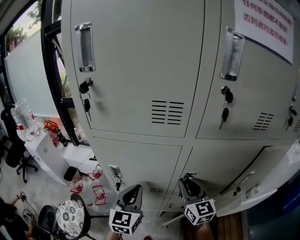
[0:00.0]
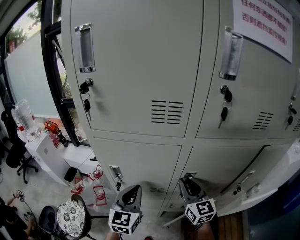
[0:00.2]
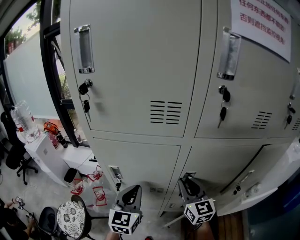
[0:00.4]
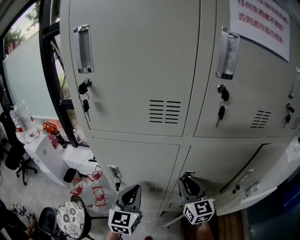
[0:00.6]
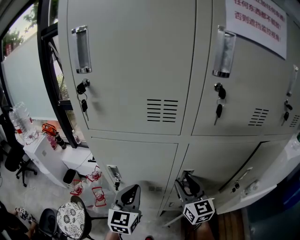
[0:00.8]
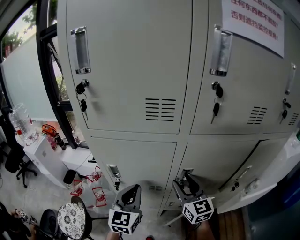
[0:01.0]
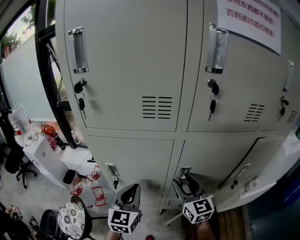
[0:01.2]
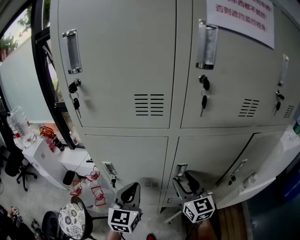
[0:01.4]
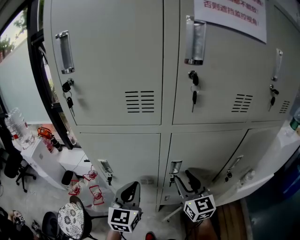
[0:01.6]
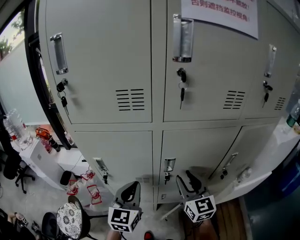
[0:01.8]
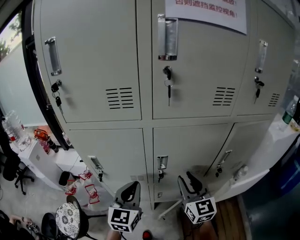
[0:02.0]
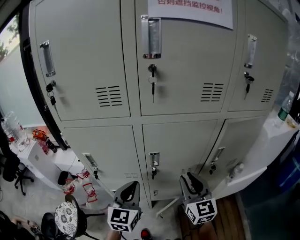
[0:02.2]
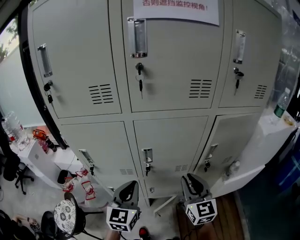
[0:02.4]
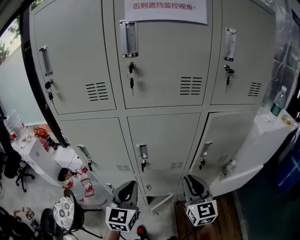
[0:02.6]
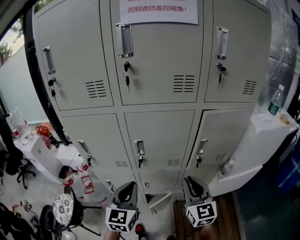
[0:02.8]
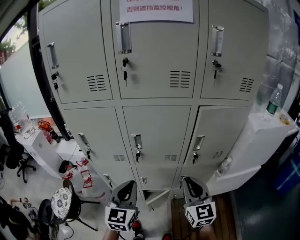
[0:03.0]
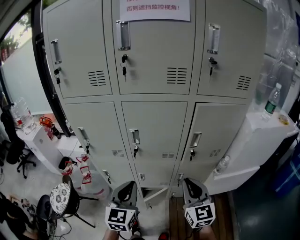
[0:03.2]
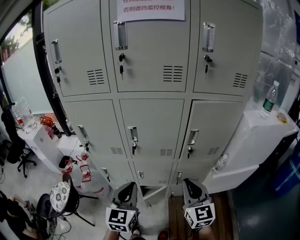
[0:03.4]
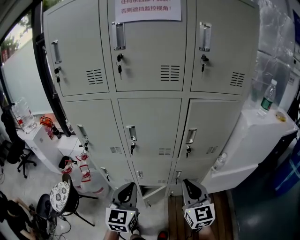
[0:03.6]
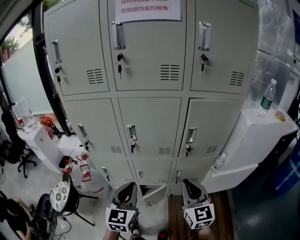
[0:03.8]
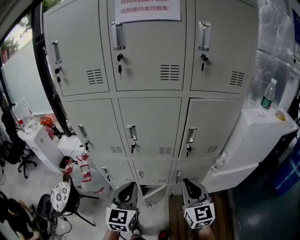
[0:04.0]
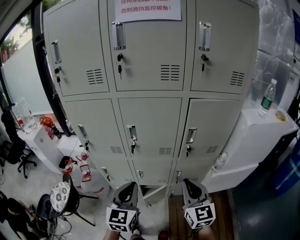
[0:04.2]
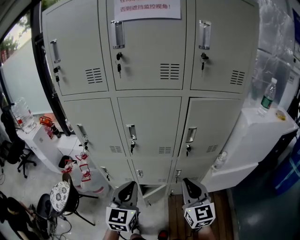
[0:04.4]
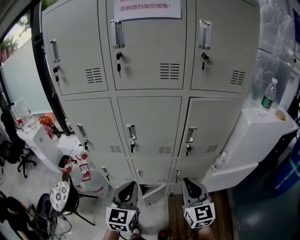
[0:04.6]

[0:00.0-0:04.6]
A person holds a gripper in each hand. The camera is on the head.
0:00.0 to 0:01.6: The right gripper shifts by some 5 cm, and opens.
0:01.6 to 0:03.0: Both grippers travel together to the right and backward, roughly 20 cm. The right gripper closes its fingers.
0:03.0 to 0:04.6: The right gripper moves approximately 5 cm. The left gripper ends up roughly 5 cm from where it was.

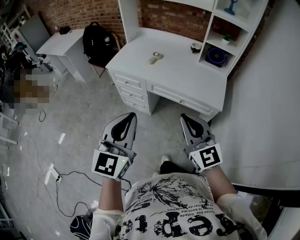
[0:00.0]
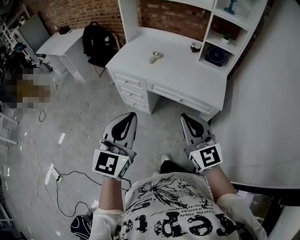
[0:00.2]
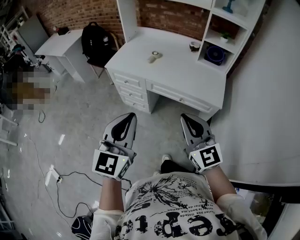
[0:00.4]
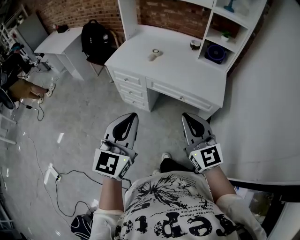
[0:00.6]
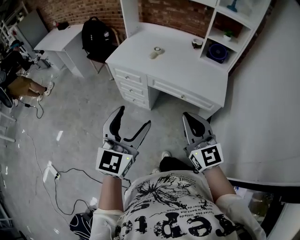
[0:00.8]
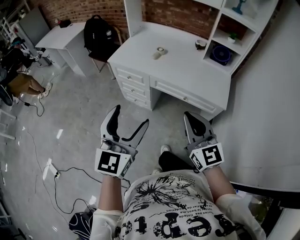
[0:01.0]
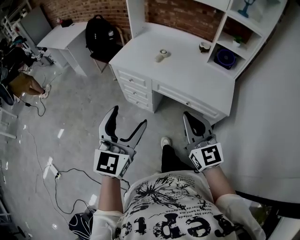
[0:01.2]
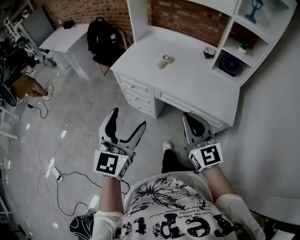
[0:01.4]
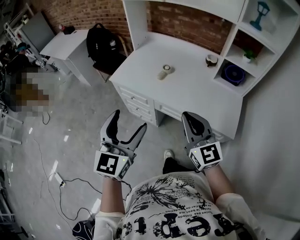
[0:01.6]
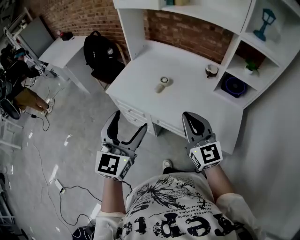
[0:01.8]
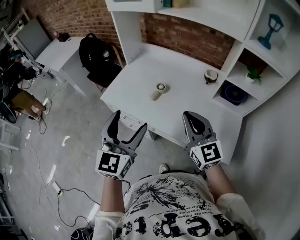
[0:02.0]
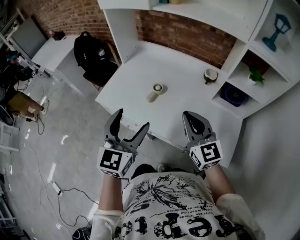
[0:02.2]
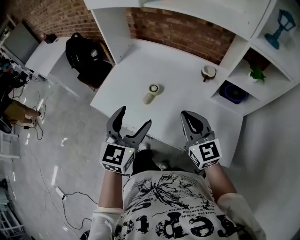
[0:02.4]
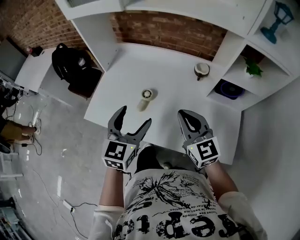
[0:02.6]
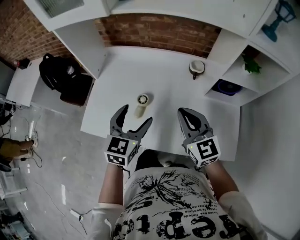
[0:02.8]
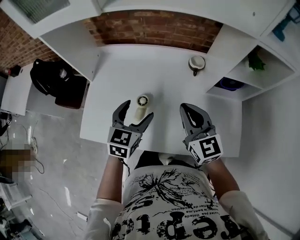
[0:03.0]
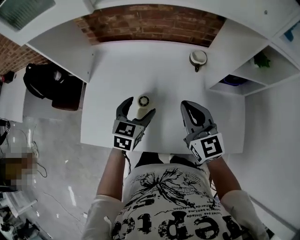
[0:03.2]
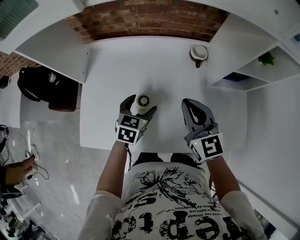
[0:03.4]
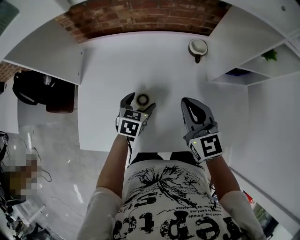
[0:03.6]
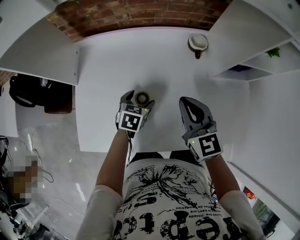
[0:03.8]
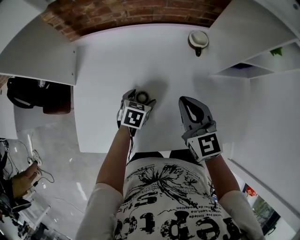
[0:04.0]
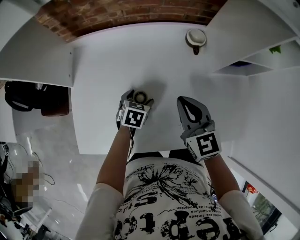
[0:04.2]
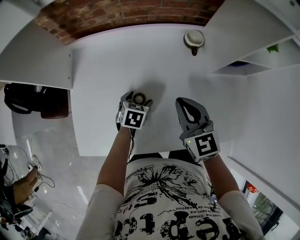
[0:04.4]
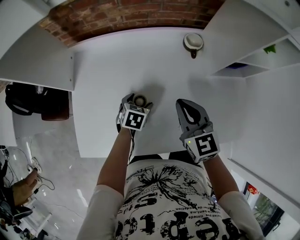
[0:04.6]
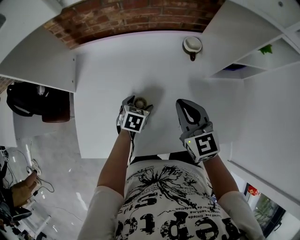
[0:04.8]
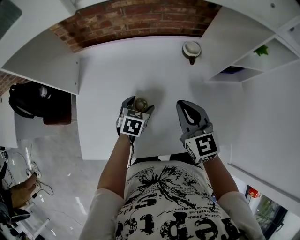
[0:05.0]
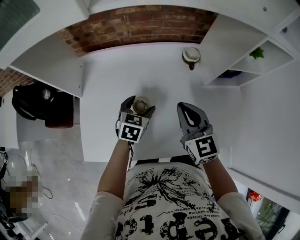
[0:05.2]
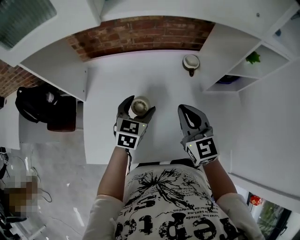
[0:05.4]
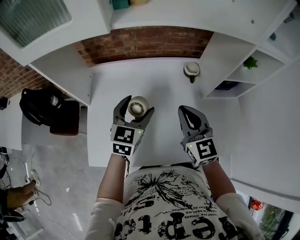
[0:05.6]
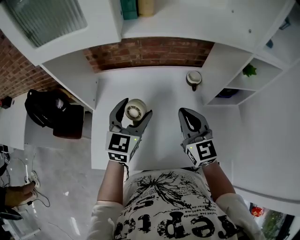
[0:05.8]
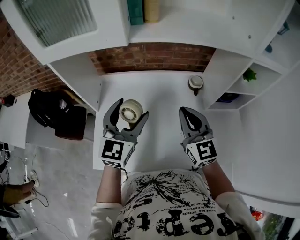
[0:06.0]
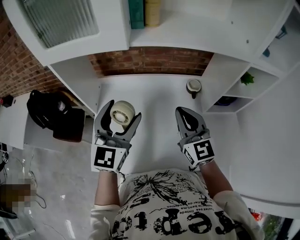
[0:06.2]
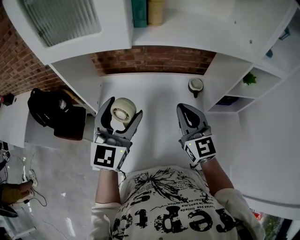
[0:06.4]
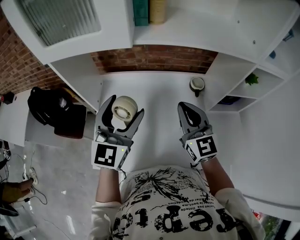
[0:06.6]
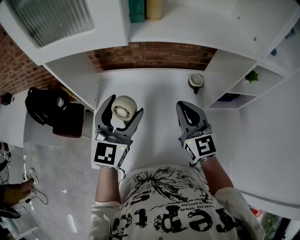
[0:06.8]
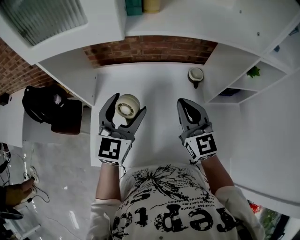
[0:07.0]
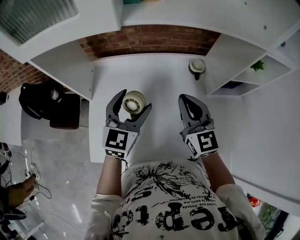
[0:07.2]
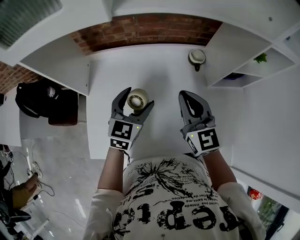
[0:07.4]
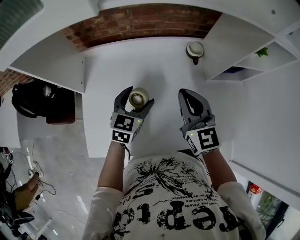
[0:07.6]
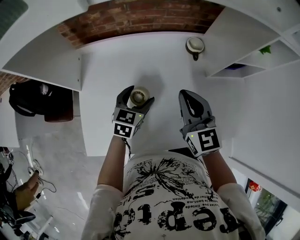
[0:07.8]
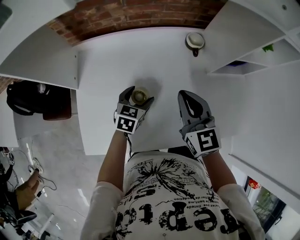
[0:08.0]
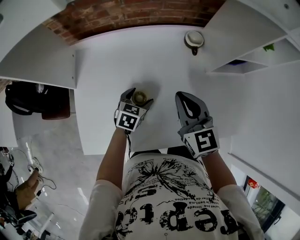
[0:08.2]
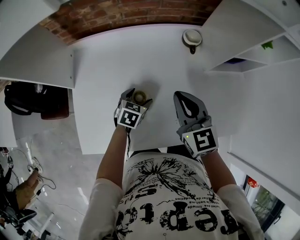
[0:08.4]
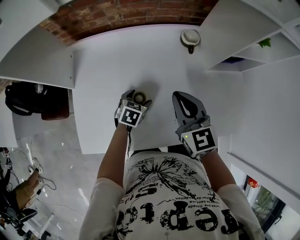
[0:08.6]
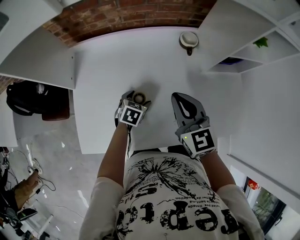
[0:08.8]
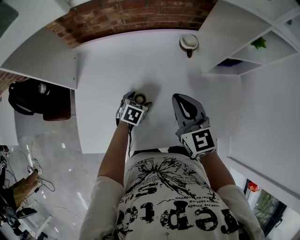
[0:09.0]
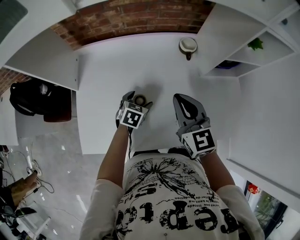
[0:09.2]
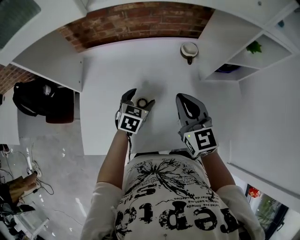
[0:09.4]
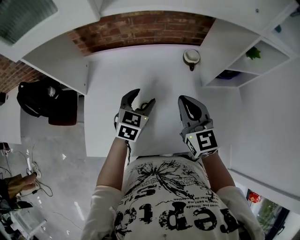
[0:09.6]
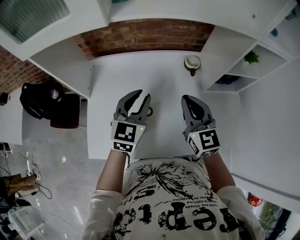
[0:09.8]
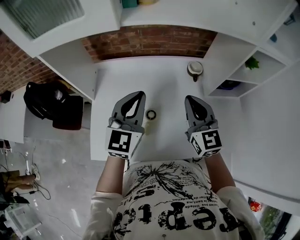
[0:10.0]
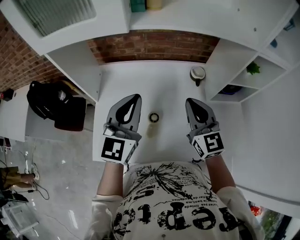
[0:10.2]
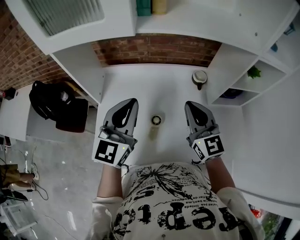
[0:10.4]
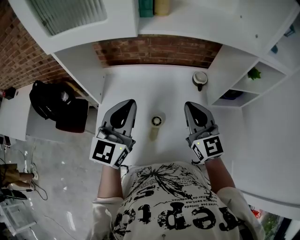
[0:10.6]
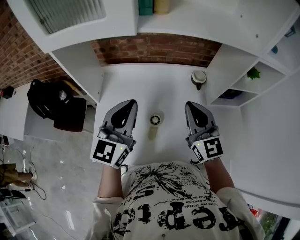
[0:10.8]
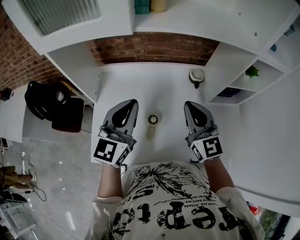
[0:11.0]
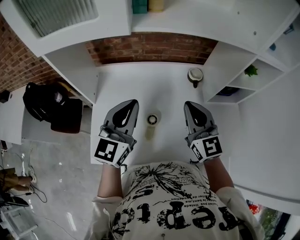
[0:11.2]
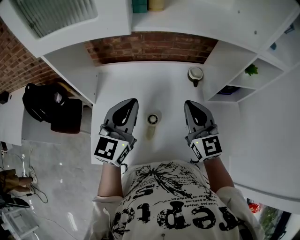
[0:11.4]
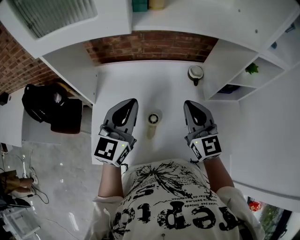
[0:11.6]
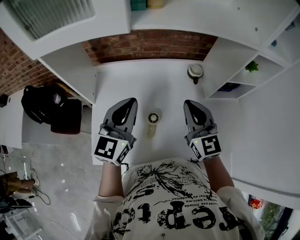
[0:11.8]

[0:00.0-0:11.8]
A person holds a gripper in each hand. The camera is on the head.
0:00.0 to 0:01.4: The grippers both shift forward by approximately 15 cm. The left gripper opens its fingers.
0:01.4 to 0:03.0: The pair of grippers is taken forward, some 60 cm. The right gripper rotates some 20 degrees. The left gripper changes its angle by approximately 30 degrees.
0:03.0 to 0:04.4: The left gripper goes roughly 25 cm downward and forward, and swivels roughly 30 degrees. The right gripper shifts roughly 10 cm downward and forward.
0:04.4 to 0:06.0: The right gripper shifts some 15 cm upward. Meanwhile the left gripper is displaced upward by approximately 35 cm, and angles its fingers upward, by roughly 50 degrees.
0:06.0 to 0:07.4: The left gripper moves downward, about 15 cm; the right gripper ends up about 5 cm from where it was.
0:07.4 to 0:08.8: The right gripper shifts approximately 5 cm downward, while the left gripper heads downward, covering some 25 cm, and tips its fingers downward by roughly 30 degrees.
0:08.8 to 0:10.4: The left gripper moves upward, roughly 40 cm, tilts its fingers some 60 degrees upward, and closes up. The right gripper shifts about 10 cm upward.
0:10.4 to 0:11.8: The grippers move only a little.

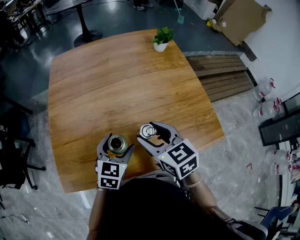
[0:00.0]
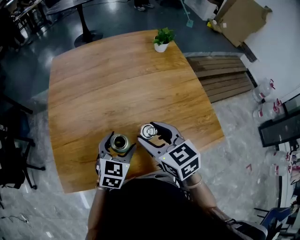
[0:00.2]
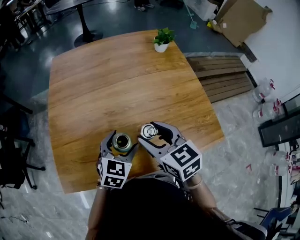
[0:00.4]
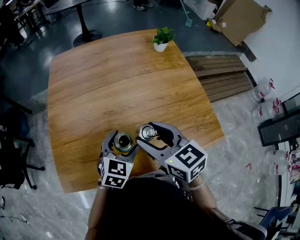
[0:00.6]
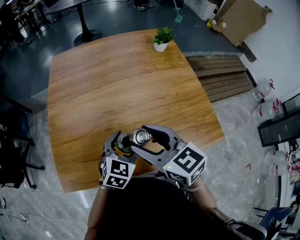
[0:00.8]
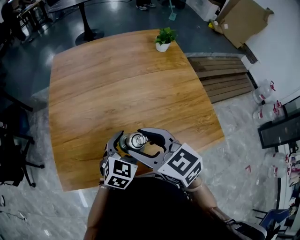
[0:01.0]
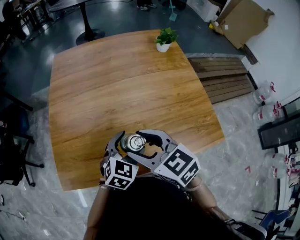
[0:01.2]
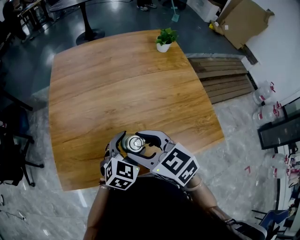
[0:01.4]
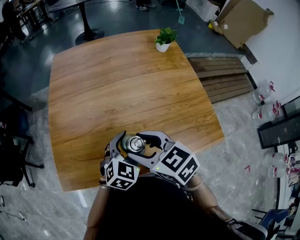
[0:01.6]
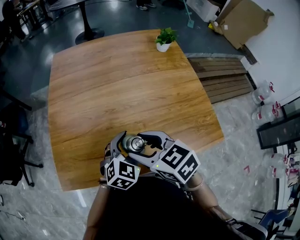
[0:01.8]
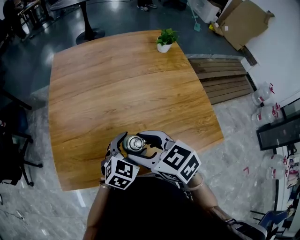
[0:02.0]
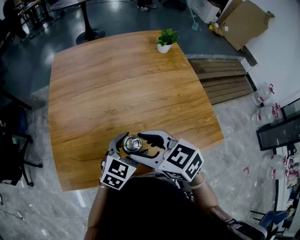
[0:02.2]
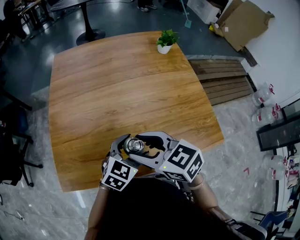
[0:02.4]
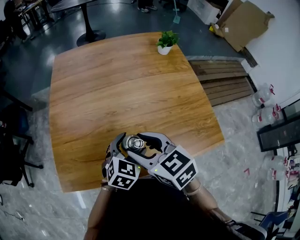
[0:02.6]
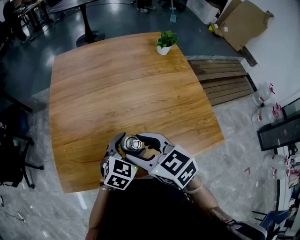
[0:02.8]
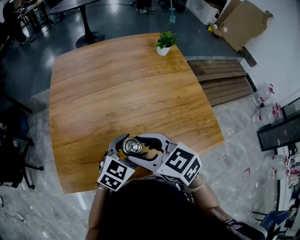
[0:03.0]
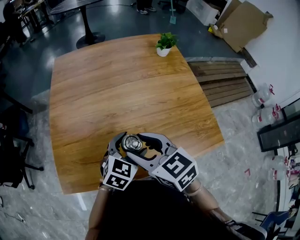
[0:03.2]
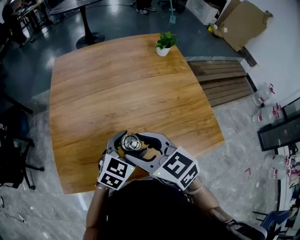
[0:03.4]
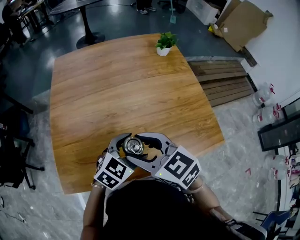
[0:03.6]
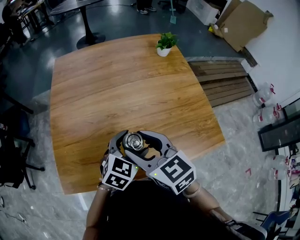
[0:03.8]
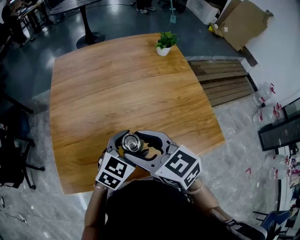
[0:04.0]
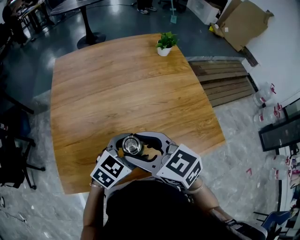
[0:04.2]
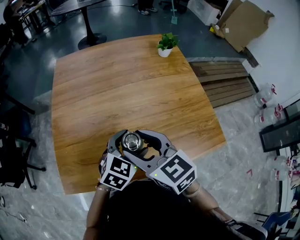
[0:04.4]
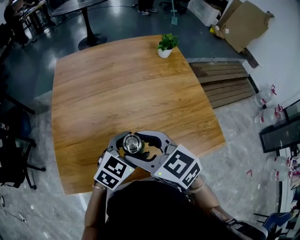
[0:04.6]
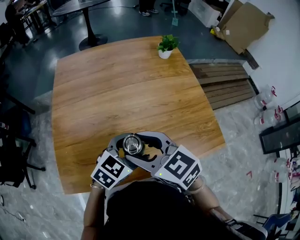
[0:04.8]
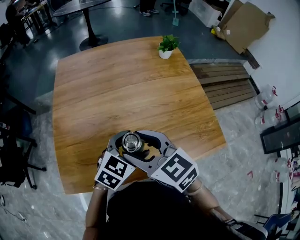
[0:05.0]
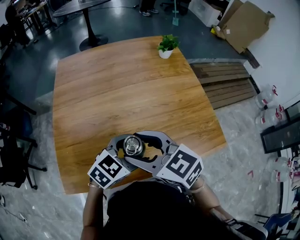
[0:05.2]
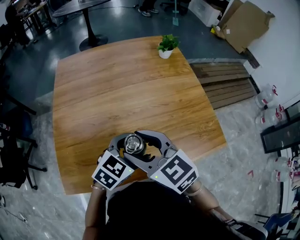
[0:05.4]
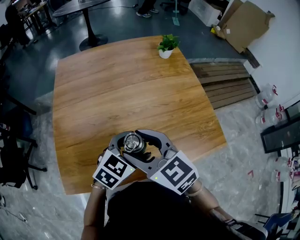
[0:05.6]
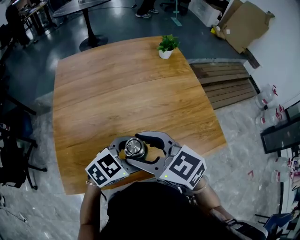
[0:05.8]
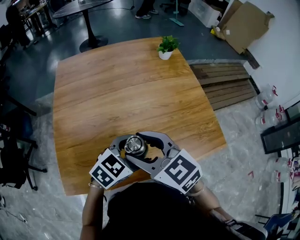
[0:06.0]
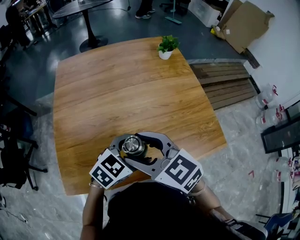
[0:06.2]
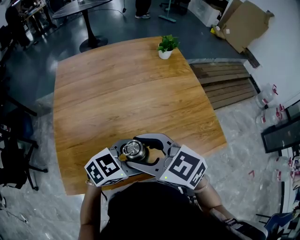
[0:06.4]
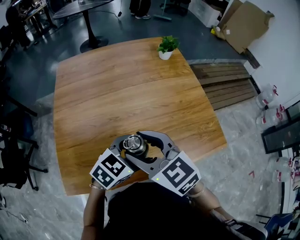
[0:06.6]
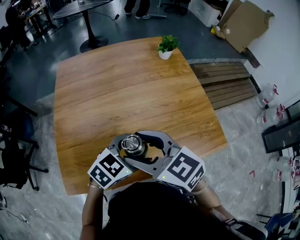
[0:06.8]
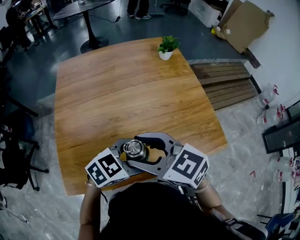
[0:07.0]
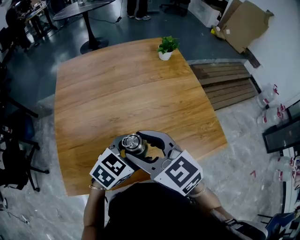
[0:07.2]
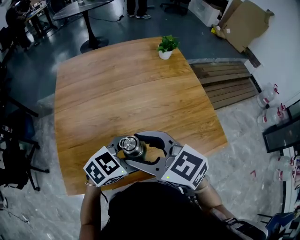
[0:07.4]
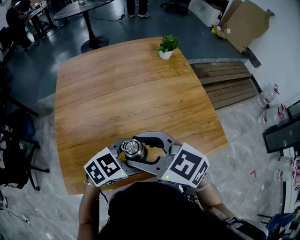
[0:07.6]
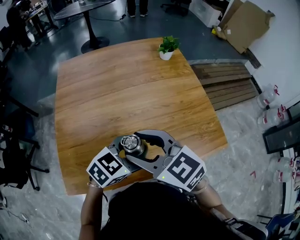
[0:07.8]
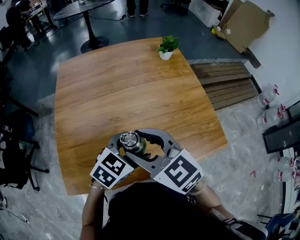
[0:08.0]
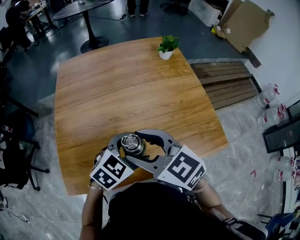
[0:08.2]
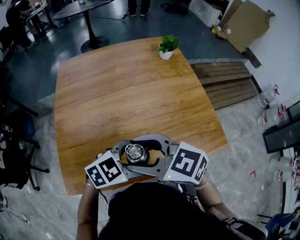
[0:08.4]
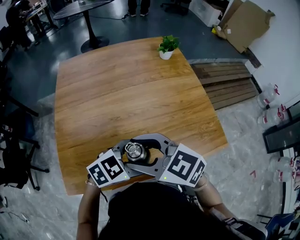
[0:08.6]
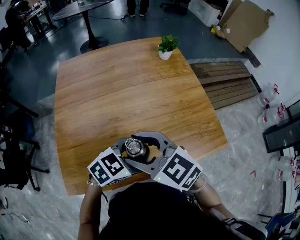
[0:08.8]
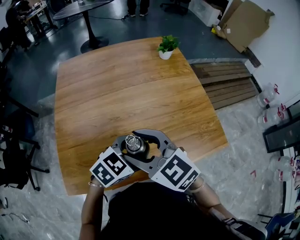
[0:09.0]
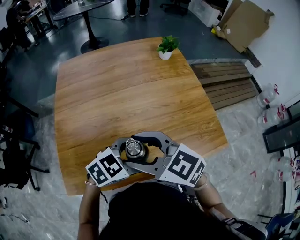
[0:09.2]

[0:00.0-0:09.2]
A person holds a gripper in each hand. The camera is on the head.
0:00.0 to 0:01.6: The right gripper is displaced to the left by roughly 5 cm.
0:01.6 to 0:03.0: The grippers make only small movements.
0:03.0 to 0:04.6: The grippers move only a little.
0:04.6 to 0:06.2: The grippers stay close to where they were, moving slightly.
0:06.2 to 0:07.6: The grippers make only small movements.
